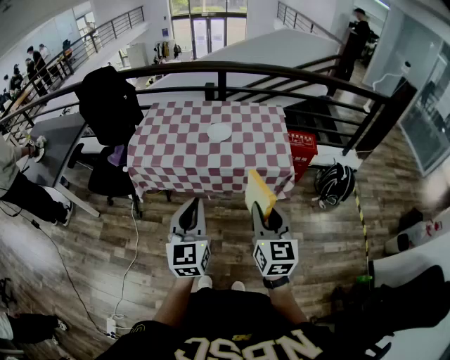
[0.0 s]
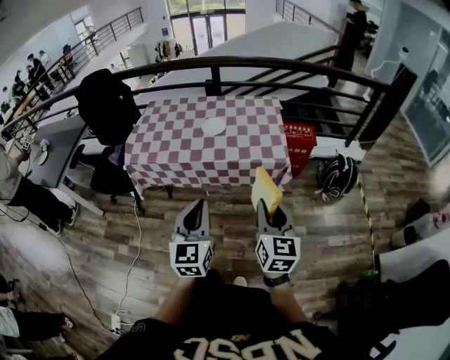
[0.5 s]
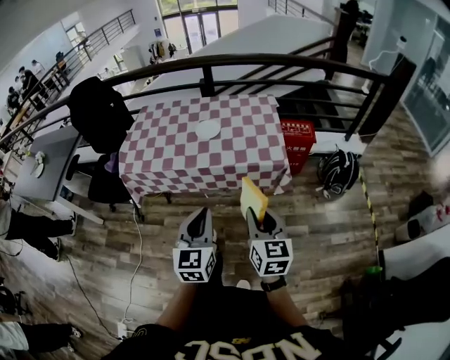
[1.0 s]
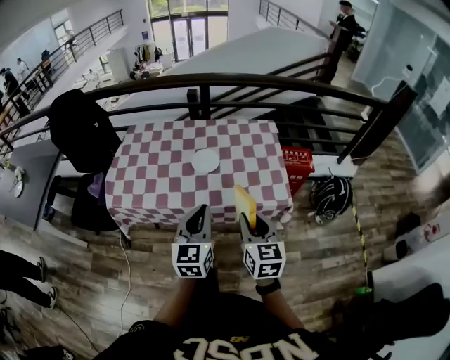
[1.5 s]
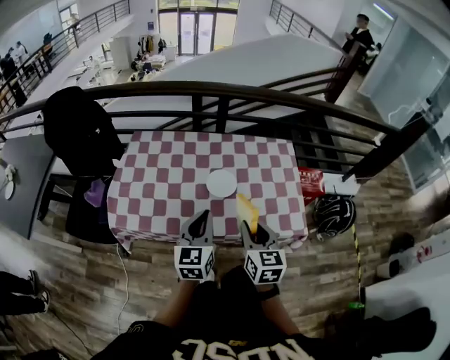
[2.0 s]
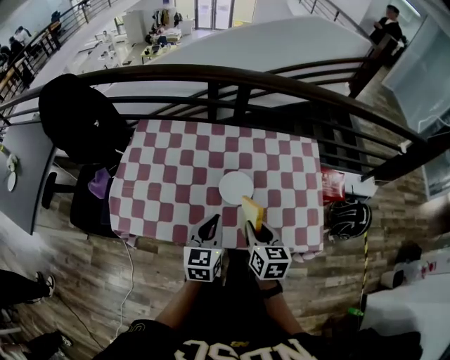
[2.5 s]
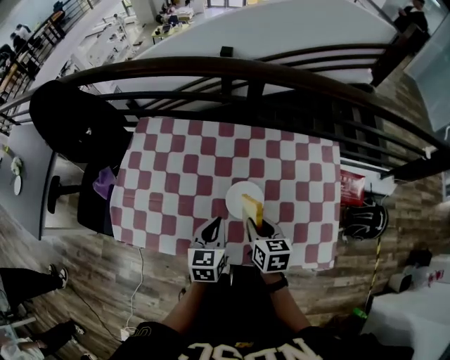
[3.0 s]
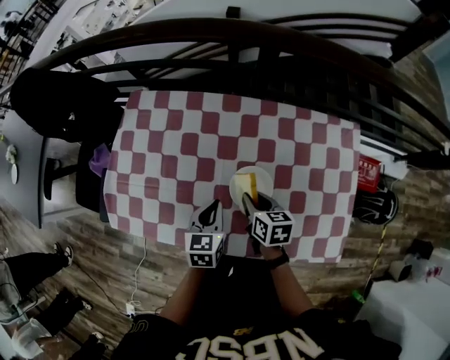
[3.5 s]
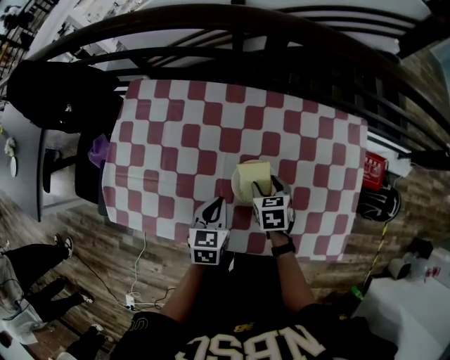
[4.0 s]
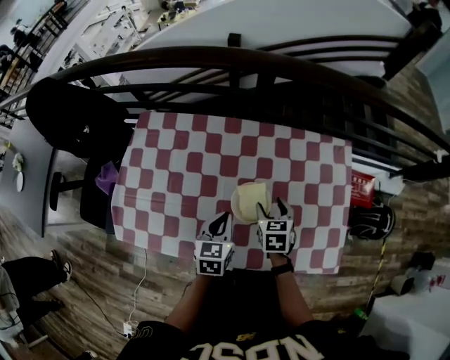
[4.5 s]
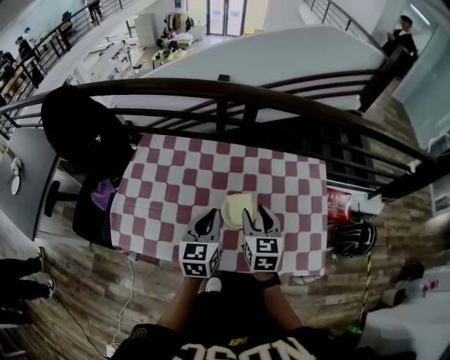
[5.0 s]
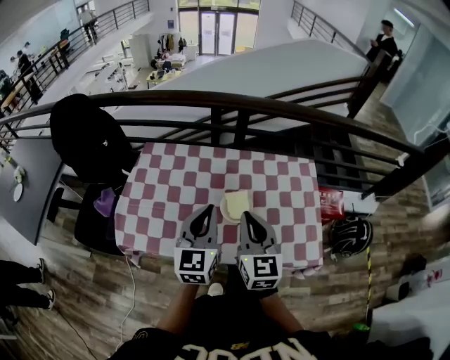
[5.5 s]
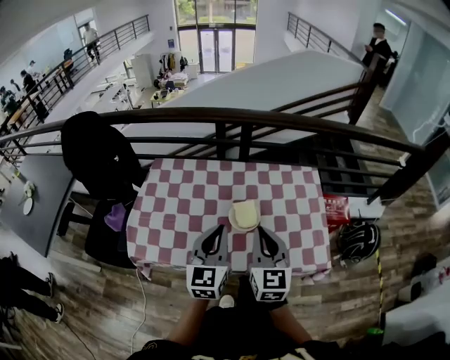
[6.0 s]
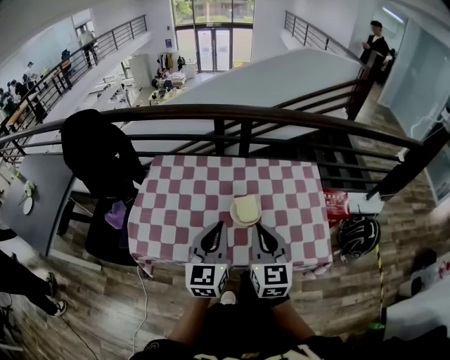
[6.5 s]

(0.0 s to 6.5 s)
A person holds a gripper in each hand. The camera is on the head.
0.0 s - 2.0 s: Both grippers travel together forward, approximately 30 cm.
2.0 s - 4.5 s: The left gripper is displaced downward and forward by about 25 cm, and changes its angle by some 30 degrees, while the right gripper moves forward and downward, about 30 cm, swivels roughly 30 degrees, and opens up.
4.5 s - 6.5 s: The two grippers go some 25 cm upward and backward. The right gripper tilts its fingers about 40 degrees upward, and closes, while the left gripper points its fingers about 30 degrees further upward.

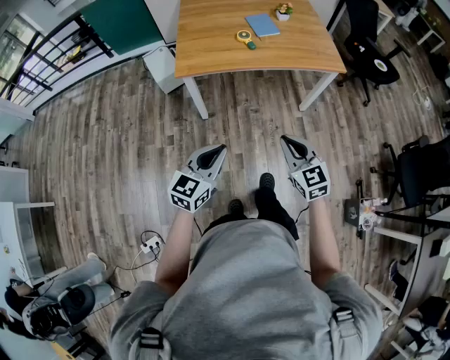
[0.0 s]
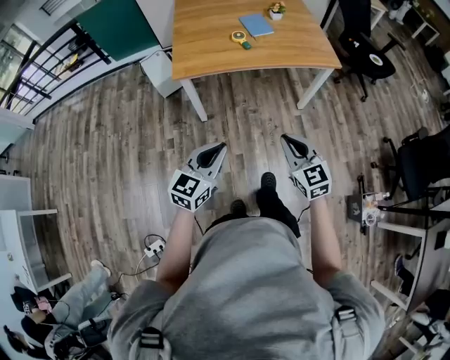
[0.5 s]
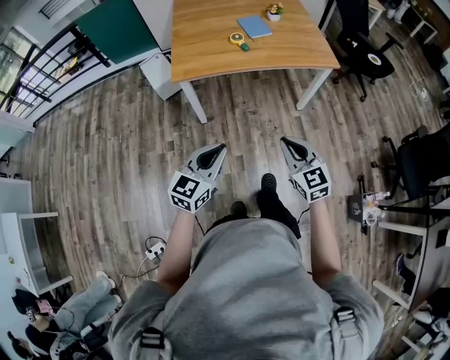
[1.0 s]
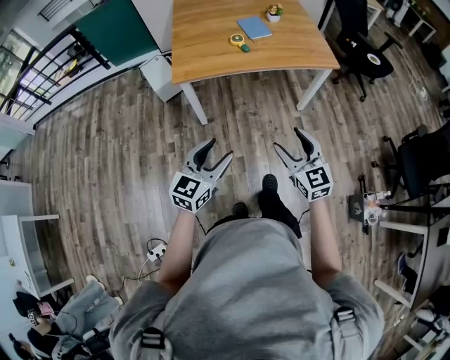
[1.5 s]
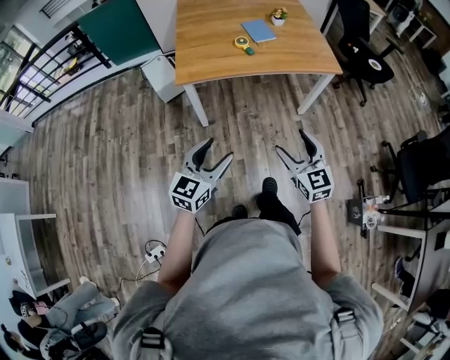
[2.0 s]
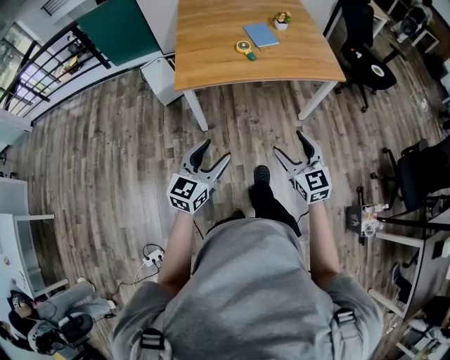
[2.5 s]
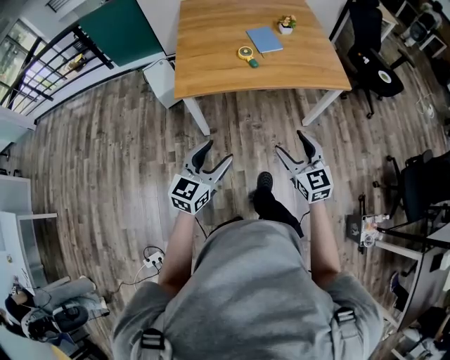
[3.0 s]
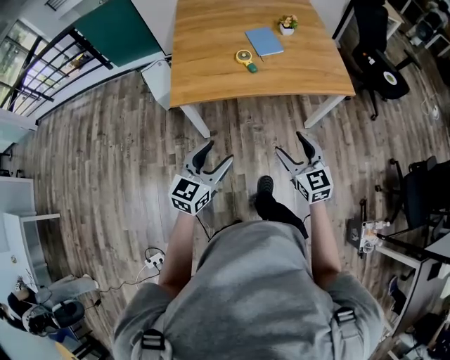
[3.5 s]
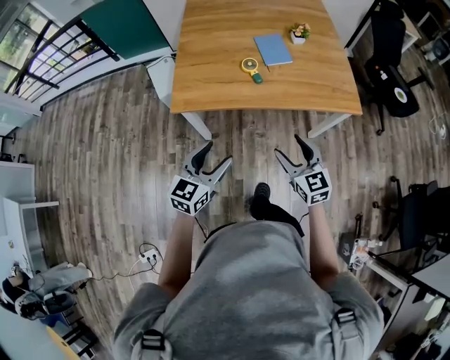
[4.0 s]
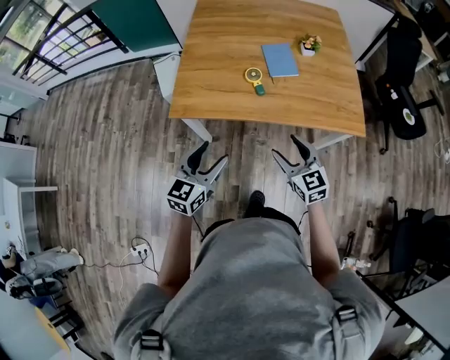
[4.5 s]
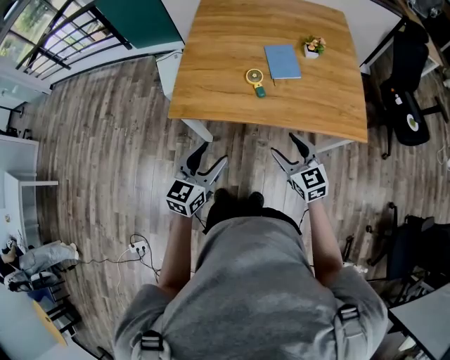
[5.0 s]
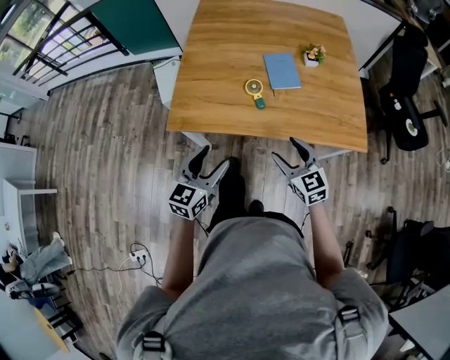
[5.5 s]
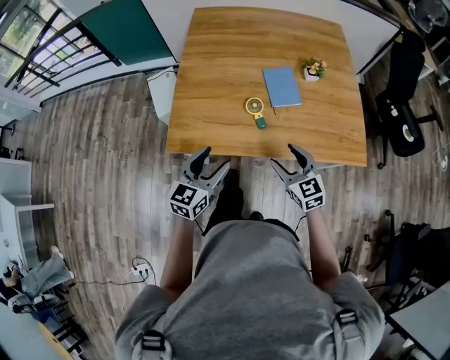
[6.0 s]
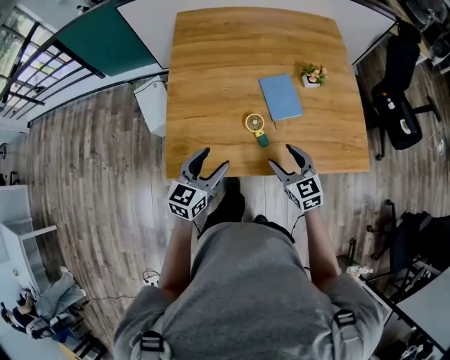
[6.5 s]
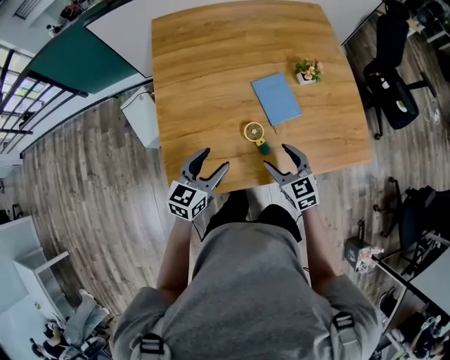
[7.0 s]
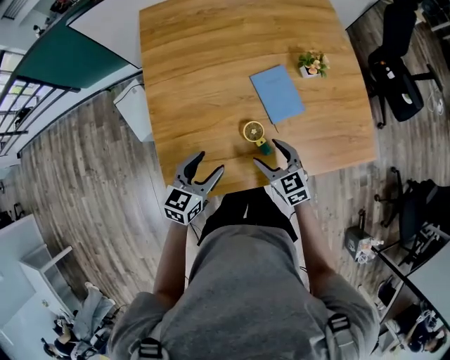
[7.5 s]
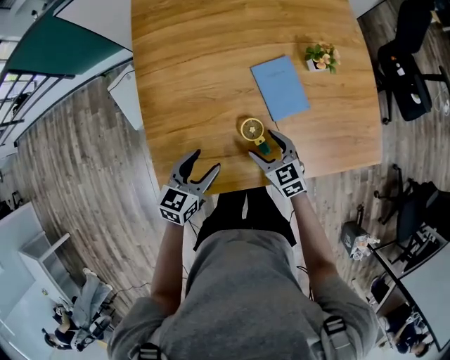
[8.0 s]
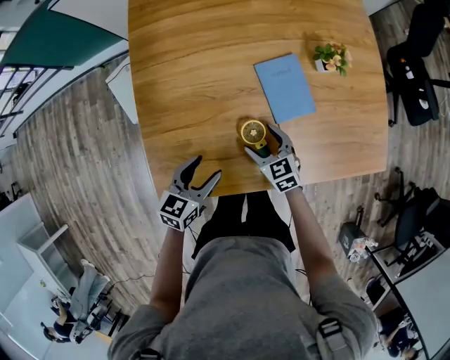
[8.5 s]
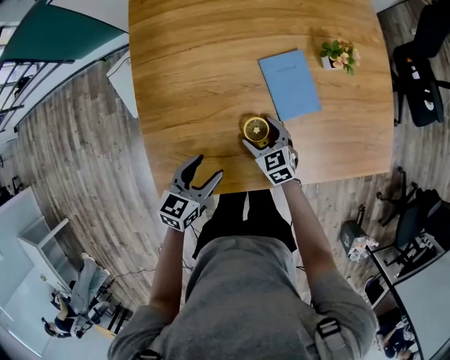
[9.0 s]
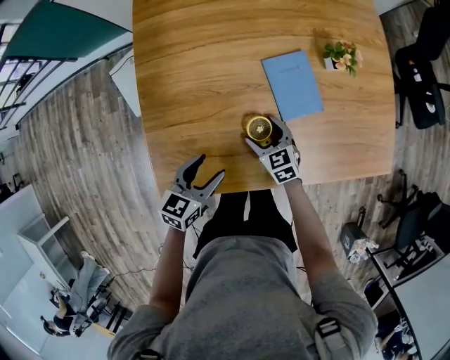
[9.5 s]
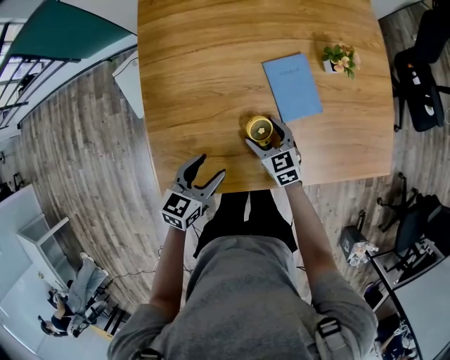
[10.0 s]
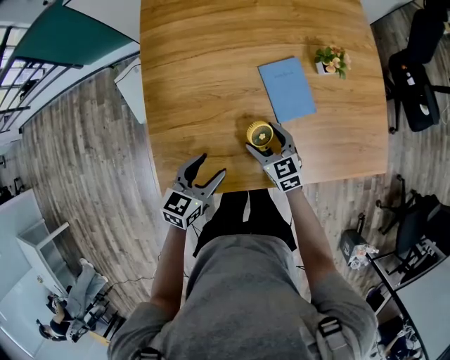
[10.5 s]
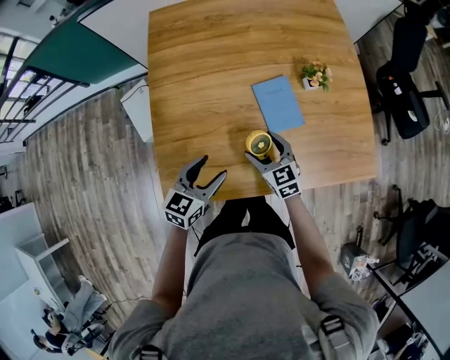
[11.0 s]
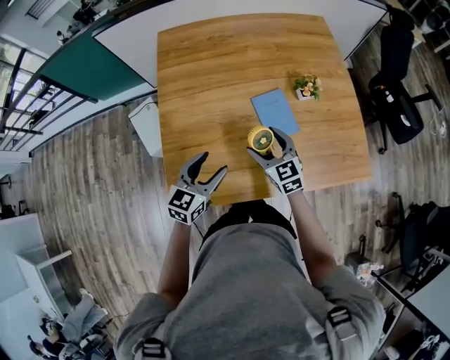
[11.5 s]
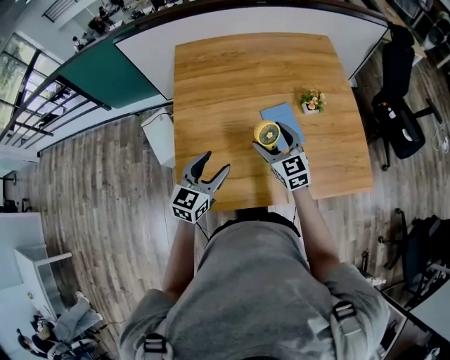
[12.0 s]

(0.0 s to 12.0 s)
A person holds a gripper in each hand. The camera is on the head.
0.0 s - 2.0 s: The right gripper opens up; the left gripper opens.
2.0 s - 4.0 s: The grippers both shift forward by roughly 25 cm.
4.0 s - 6.0 s: Both grippers move forward, approximately 20 cm.
6.0 s - 8.0 s: The left gripper goes about 25 cm forward and downward, and swivels some 20 degrees; the right gripper travels forward, downward and to the left by approximately 25 cm.
8.0 s - 10.0 s: The right gripper travels downward by roughly 5 cm.
10.0 s - 12.0 s: The grippers both shift upward by approximately 20 cm. The left gripper turns by roughly 20 degrees. Meanwhile the right gripper rotates about 20 degrees.

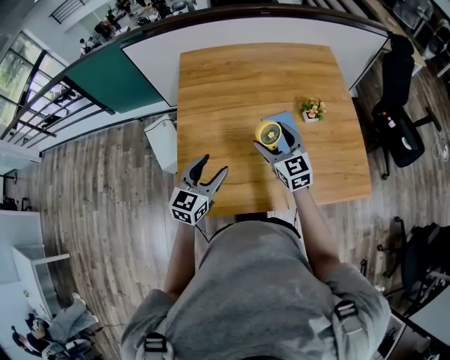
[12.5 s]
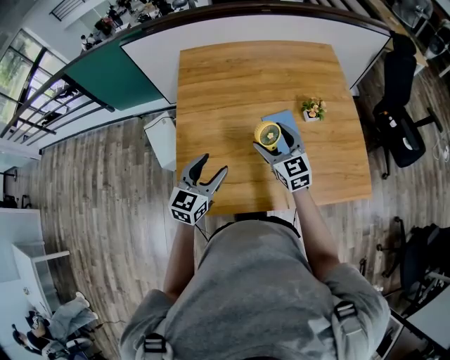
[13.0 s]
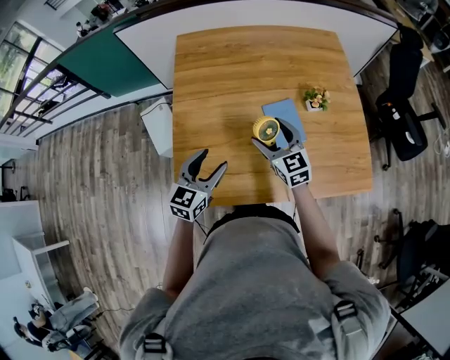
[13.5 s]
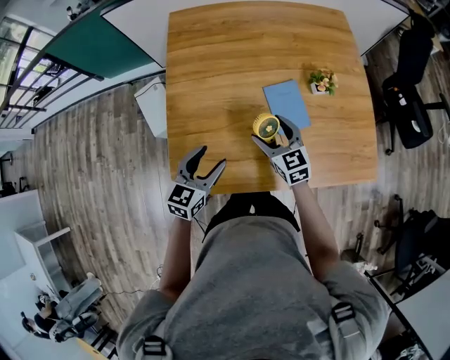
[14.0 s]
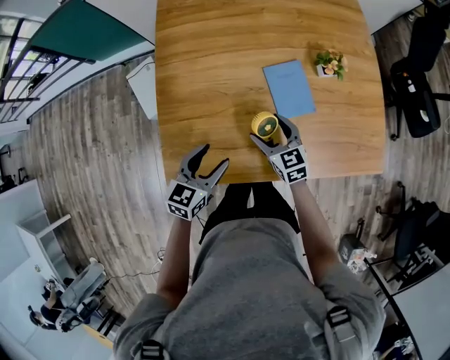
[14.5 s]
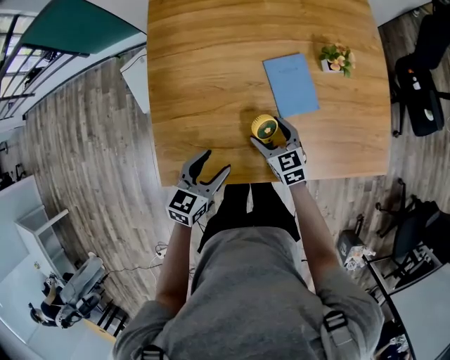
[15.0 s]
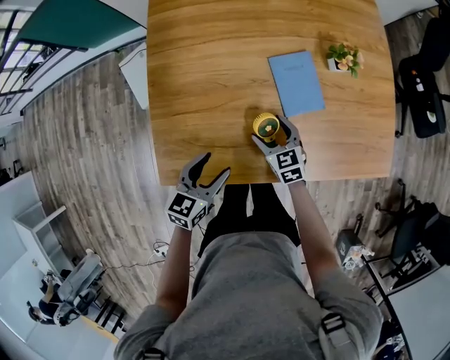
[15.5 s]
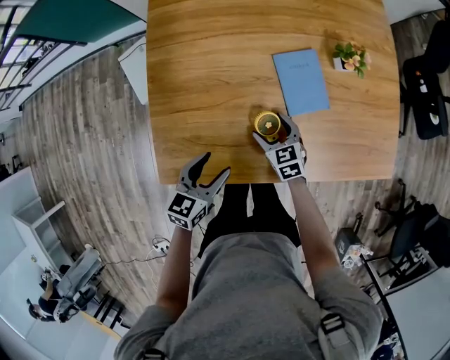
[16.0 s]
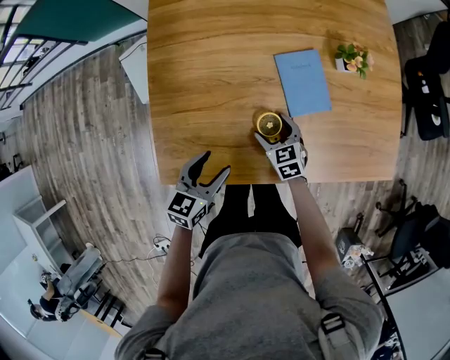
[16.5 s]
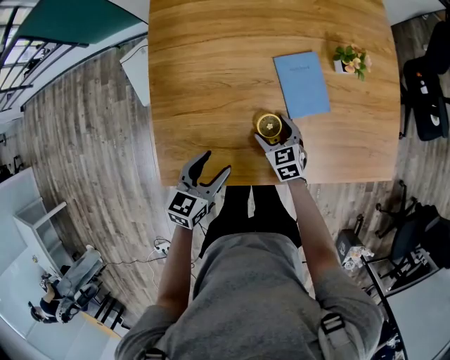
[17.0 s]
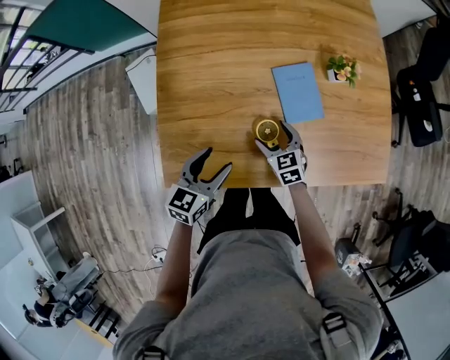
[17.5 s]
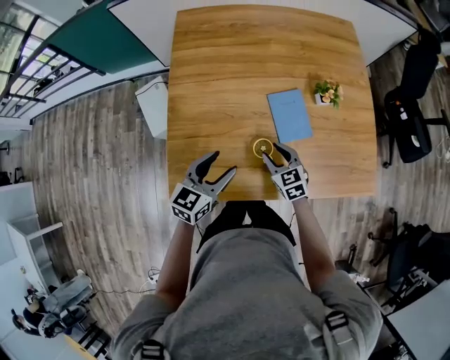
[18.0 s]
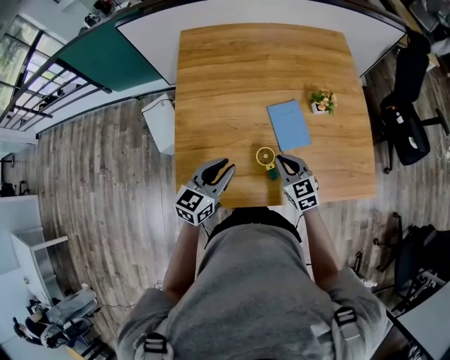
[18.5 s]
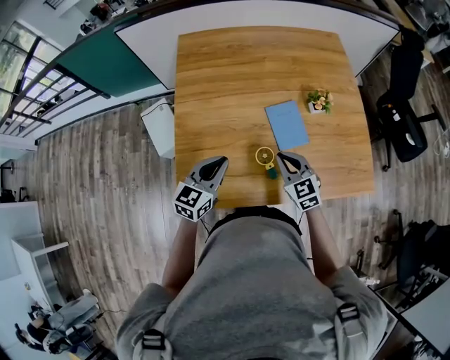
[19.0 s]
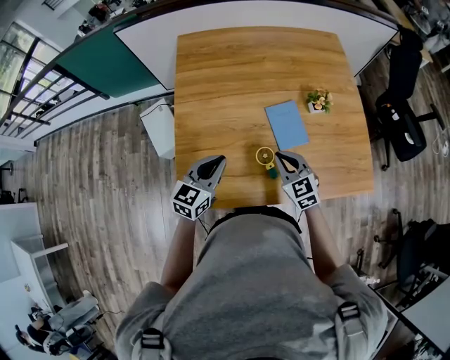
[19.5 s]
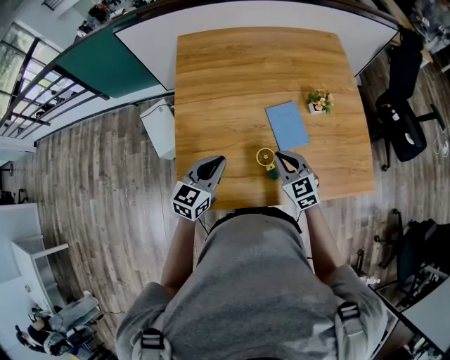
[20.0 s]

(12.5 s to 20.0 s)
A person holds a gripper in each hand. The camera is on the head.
12.5 s - 14.5 s: The right gripper heads downward, covering about 20 cm, and rotates some 20 degrees, while the left gripper shifts roughly 10 cm downward.
14.5 s - 16.5 s: The right gripper is displaced downward by roughly 15 cm, while the left gripper goes approximately 10 cm downward.
16.5 s - 18.0 s: The two grippers go approximately 10 cm upward. The right gripper closes.
18.0 s - 20.0 s: The right gripper heads upward, covering about 10 cm, and closes. The left gripper moves roughly 5 cm, and closes.

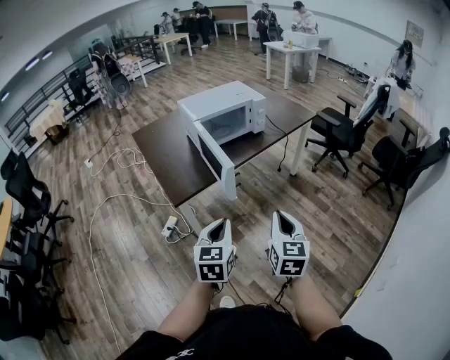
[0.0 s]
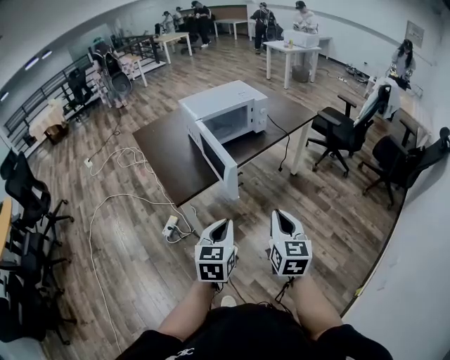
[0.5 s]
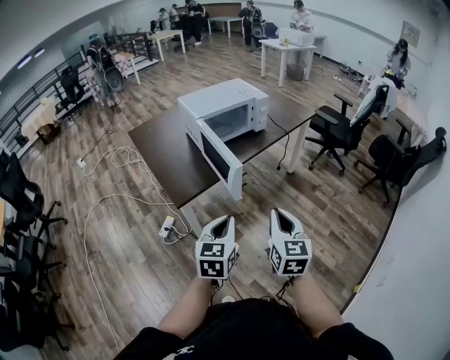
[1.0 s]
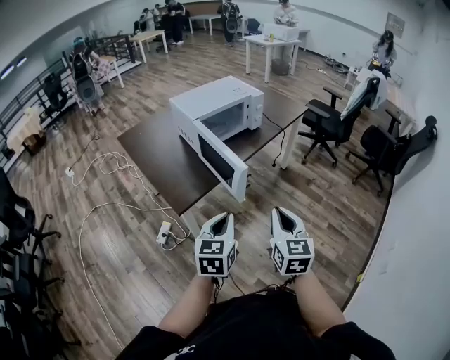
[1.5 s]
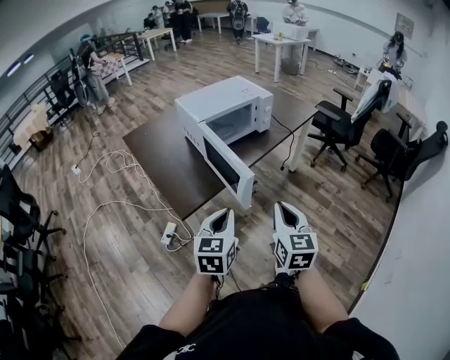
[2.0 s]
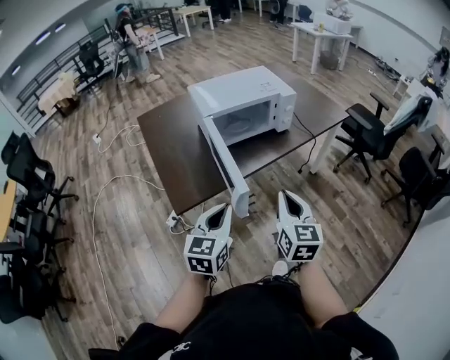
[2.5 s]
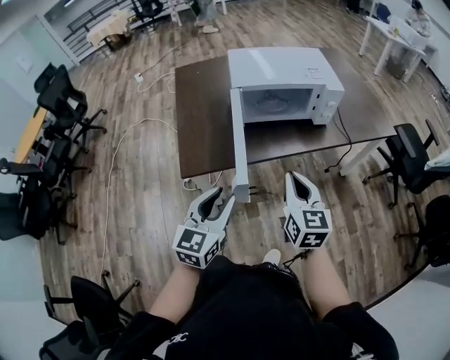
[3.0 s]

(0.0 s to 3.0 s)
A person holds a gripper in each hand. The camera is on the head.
0.0 s - 1.5 s: The right gripper shifts some 10 cm to the left, while the left gripper shifts about 10 cm to the left and forward.
1.5 s - 3.0 s: The left gripper moves about 15 cm, rotates about 20 degrees, and opens; the right gripper shifts by roughly 25 cm, and changes its angle by about 30 degrees.
